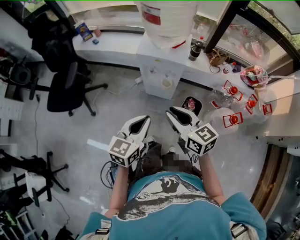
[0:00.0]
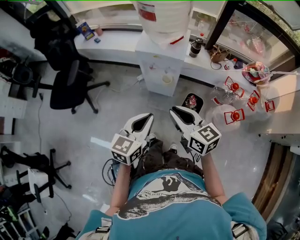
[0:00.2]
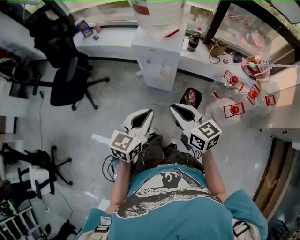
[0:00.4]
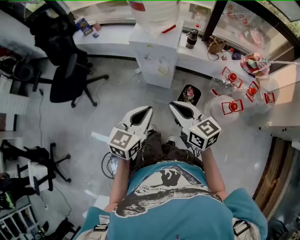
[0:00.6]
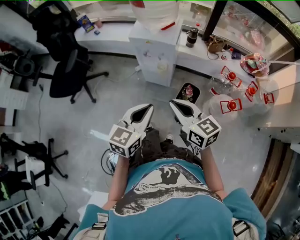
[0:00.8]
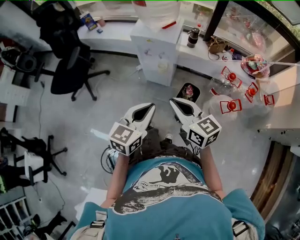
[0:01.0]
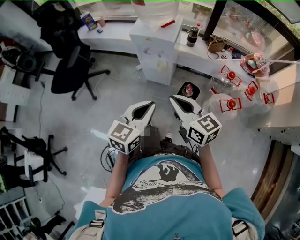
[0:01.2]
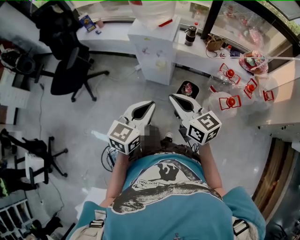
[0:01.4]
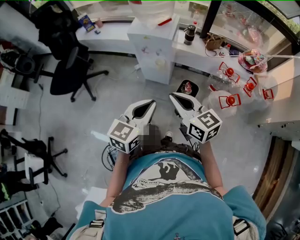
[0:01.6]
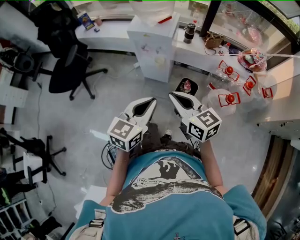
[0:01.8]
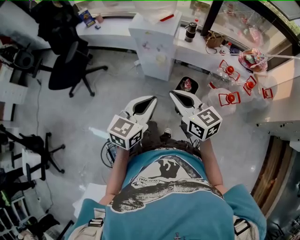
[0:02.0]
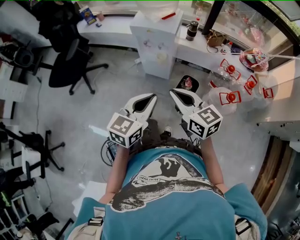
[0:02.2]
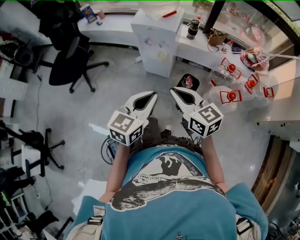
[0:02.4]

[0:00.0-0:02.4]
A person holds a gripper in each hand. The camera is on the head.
0:00.0 to 0:01.2: The two grippers go some 15 cm backward and to the right.
0:01.2 to 0:02.4: The grippers move only a little.

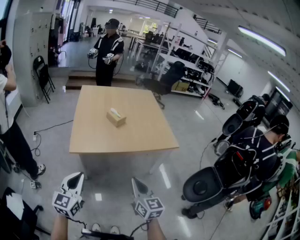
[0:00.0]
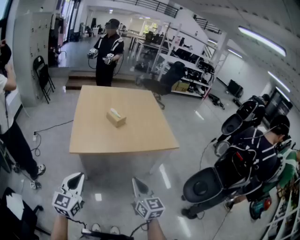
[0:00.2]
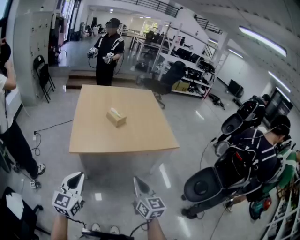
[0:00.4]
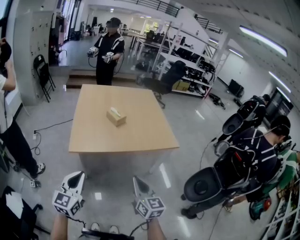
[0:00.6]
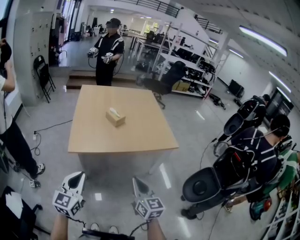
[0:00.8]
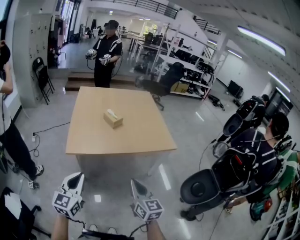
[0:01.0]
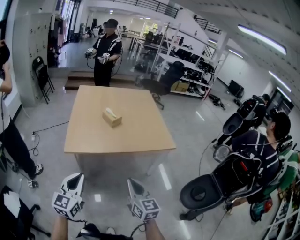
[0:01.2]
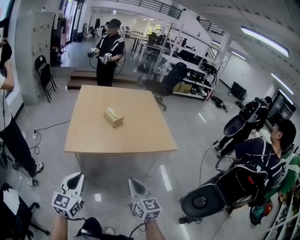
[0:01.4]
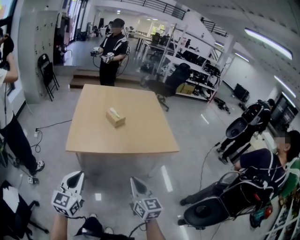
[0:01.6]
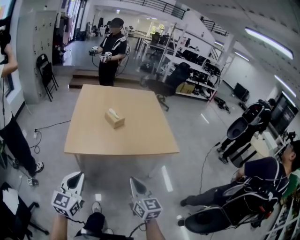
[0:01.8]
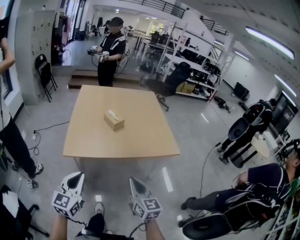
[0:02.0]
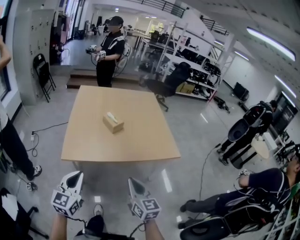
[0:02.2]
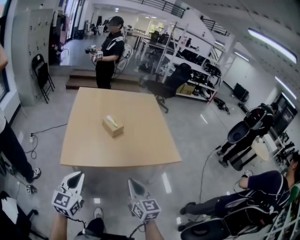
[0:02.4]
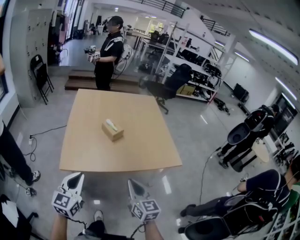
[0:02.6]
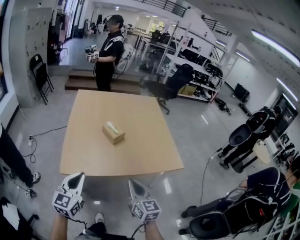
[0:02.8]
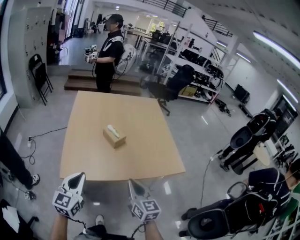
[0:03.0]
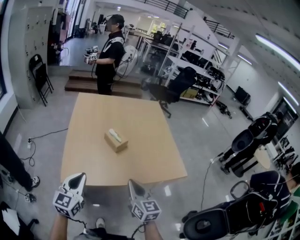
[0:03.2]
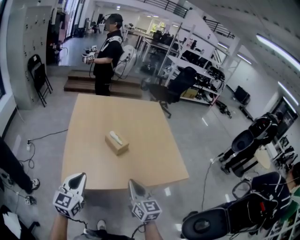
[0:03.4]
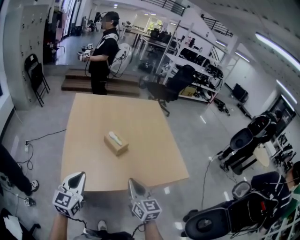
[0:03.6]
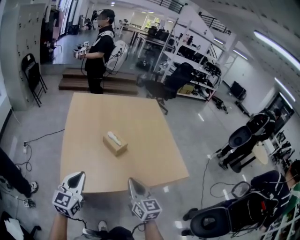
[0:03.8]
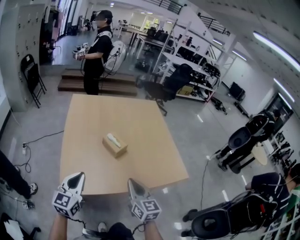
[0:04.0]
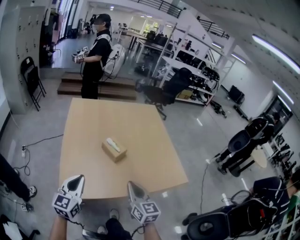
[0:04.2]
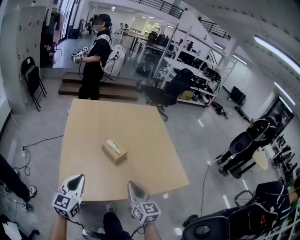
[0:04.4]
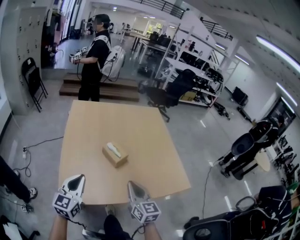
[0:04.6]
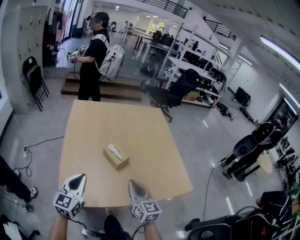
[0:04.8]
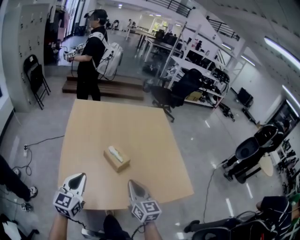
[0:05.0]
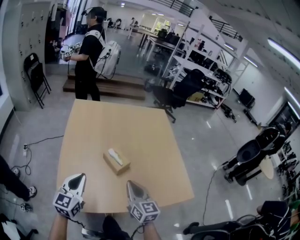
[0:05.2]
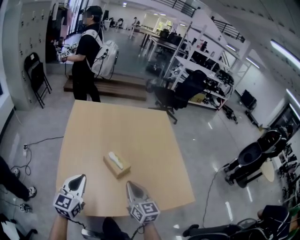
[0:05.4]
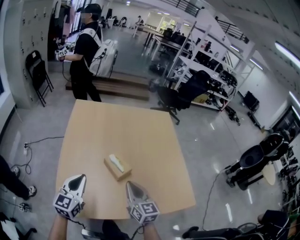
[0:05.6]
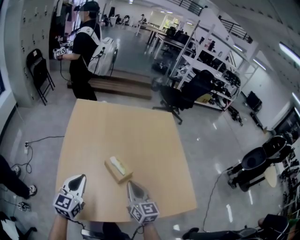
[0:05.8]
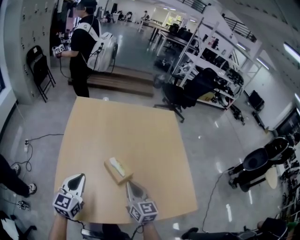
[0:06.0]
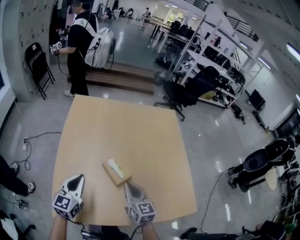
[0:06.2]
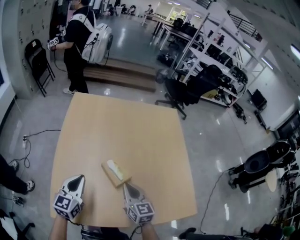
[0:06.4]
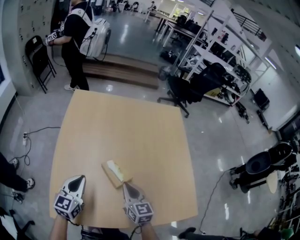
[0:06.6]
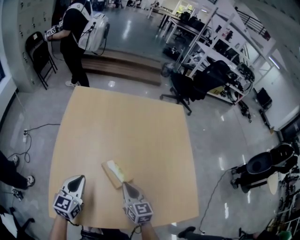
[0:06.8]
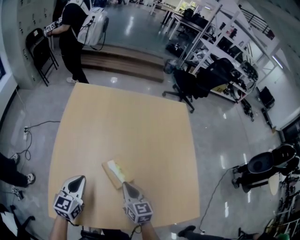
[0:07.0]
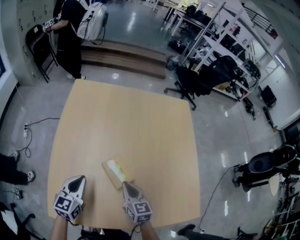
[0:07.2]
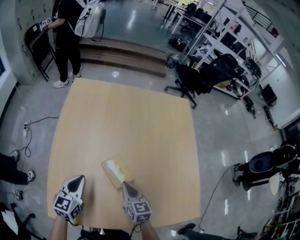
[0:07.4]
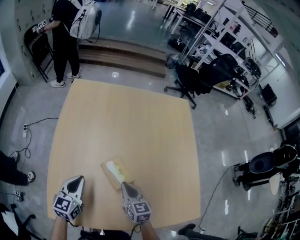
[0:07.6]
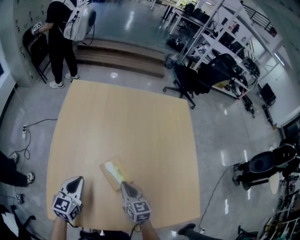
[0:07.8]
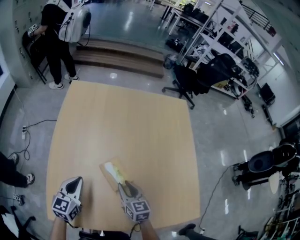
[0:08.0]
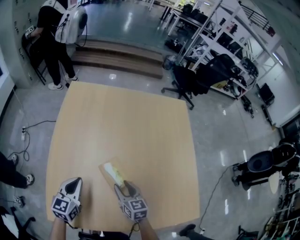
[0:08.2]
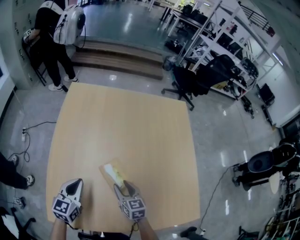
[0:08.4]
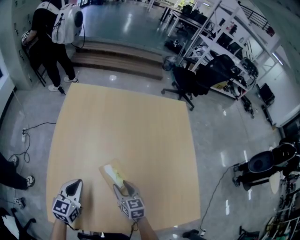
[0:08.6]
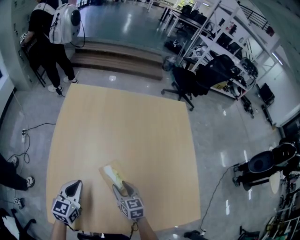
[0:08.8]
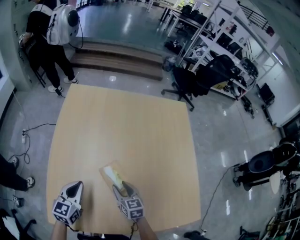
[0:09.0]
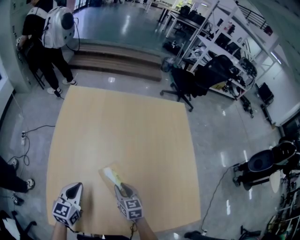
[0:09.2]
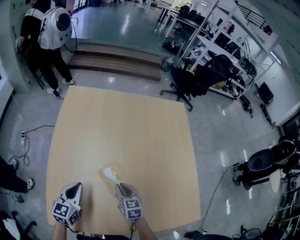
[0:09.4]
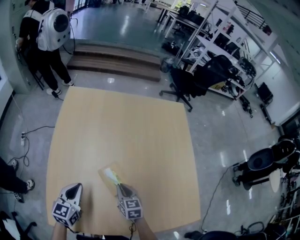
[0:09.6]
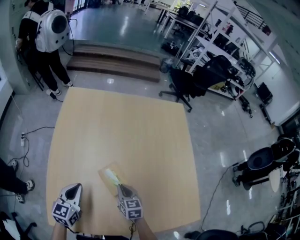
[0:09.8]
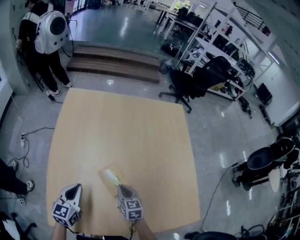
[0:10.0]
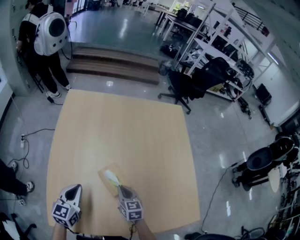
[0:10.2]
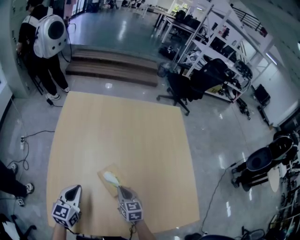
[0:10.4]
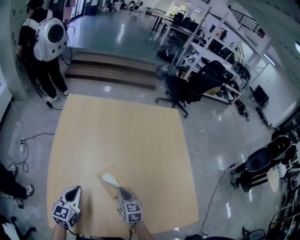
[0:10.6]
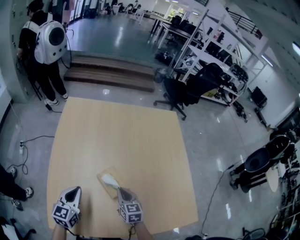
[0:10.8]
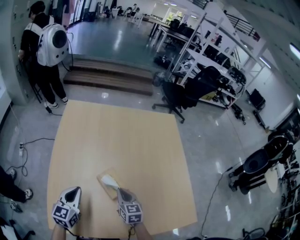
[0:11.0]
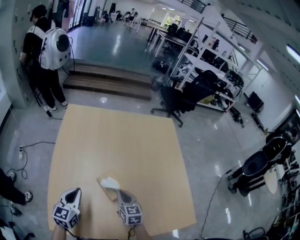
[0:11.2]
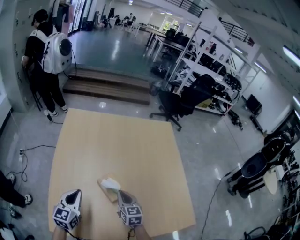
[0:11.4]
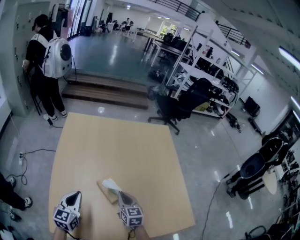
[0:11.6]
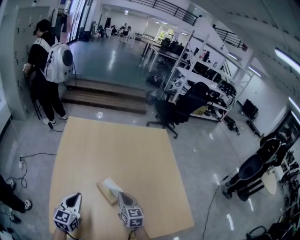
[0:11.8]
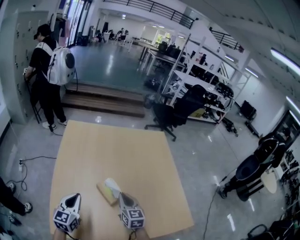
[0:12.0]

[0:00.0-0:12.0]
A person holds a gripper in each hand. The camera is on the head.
0:00.0 to 0:01.6: The grippers stay close to where they were, moving slightly.
0:01.6 to 0:03.0: Both grippers travel together forward, approximately 20 cm.
0:03.0 to 0:04.4: The grippers both shift forward by some 10 cm.
0:04.4 to 0:06.0: Both grippers travel together forward, about 15 cm.
0:06.0 to 0:07.6: The two grippers go approximately 10 cm downward and forward.
0:07.6 to 0:09.0: The right gripper moves about 5 cm, and opens up.
0:09.0 to 0:10.4: The right gripper closes its fingers.
0:10.4 to 0:12.0: The left gripper travels upward by some 5 cm, while the right gripper goes roughly 10 cm upward.

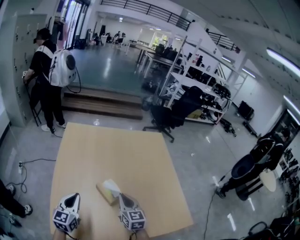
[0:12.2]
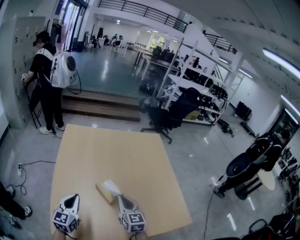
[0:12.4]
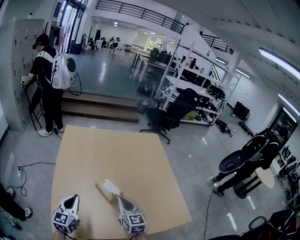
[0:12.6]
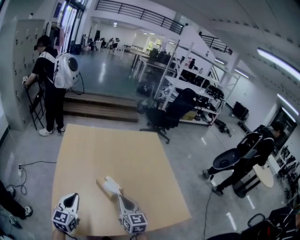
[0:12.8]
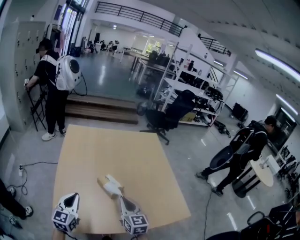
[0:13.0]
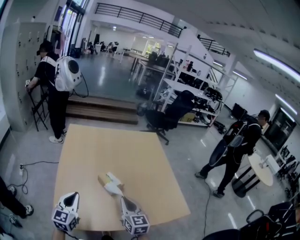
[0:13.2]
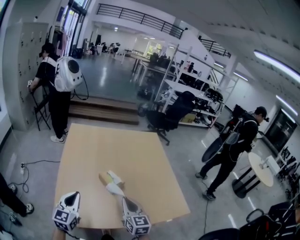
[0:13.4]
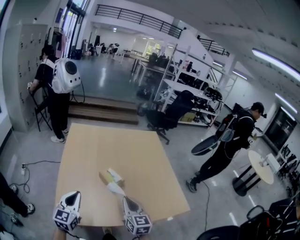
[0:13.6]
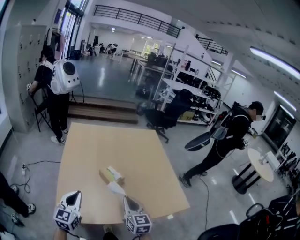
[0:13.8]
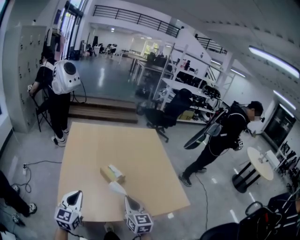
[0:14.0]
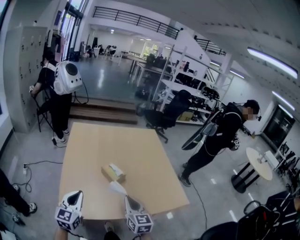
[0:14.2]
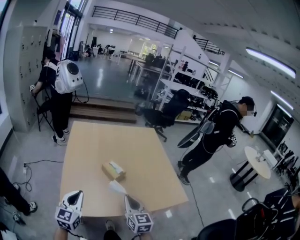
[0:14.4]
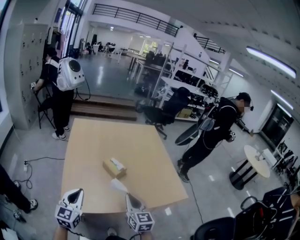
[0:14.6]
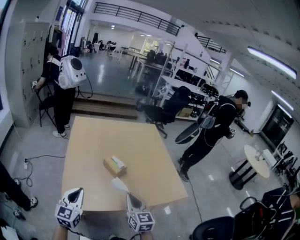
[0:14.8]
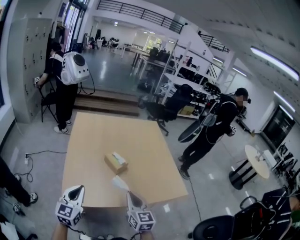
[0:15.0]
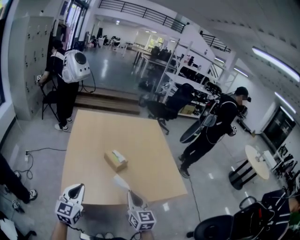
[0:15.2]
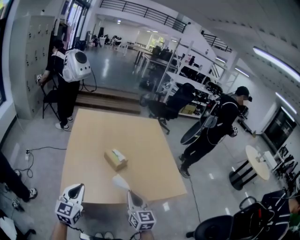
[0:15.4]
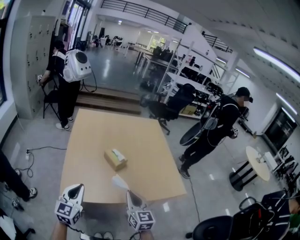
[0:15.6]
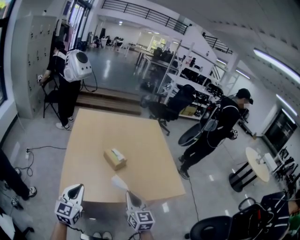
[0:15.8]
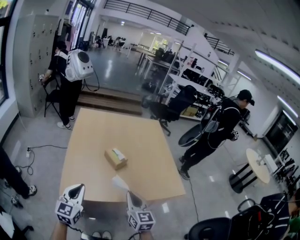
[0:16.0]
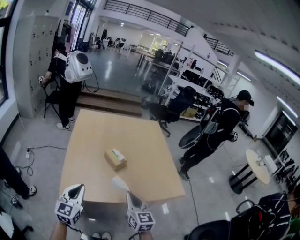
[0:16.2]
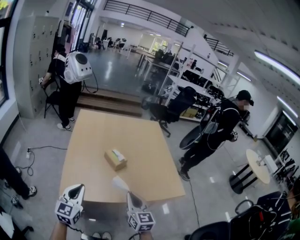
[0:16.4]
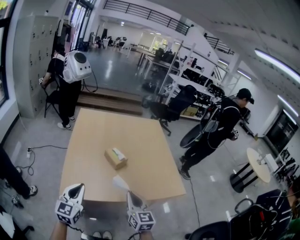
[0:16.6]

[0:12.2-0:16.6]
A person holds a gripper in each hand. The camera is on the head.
0:12.2 to 0:13.6: The grippers both shift backward by approximately 15 cm.
0:13.6 to 0:15.2: Both grippers move backward, about 10 cm.
0:15.2 to 0:16.6: The grippers make only small movements.

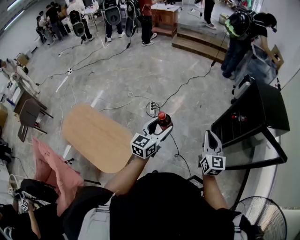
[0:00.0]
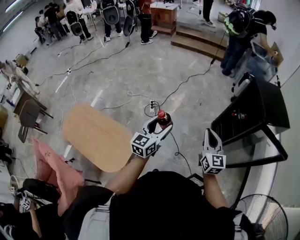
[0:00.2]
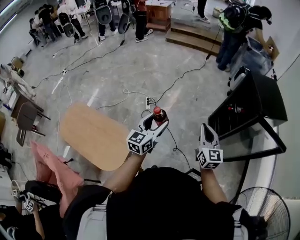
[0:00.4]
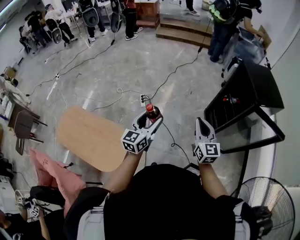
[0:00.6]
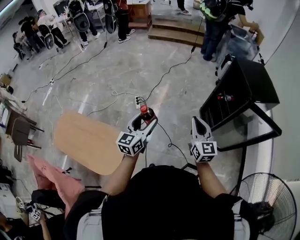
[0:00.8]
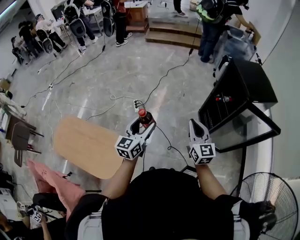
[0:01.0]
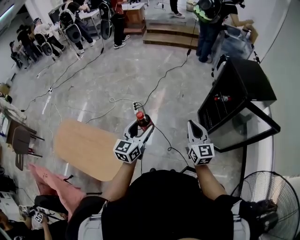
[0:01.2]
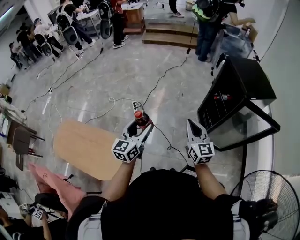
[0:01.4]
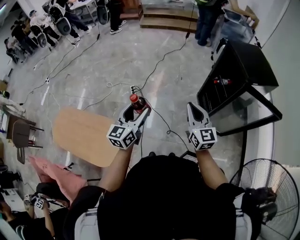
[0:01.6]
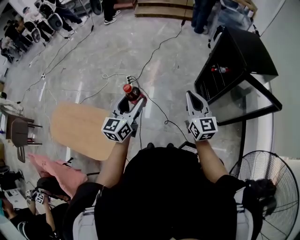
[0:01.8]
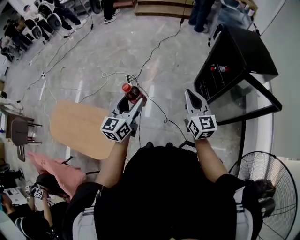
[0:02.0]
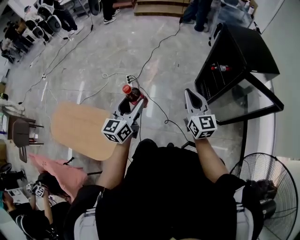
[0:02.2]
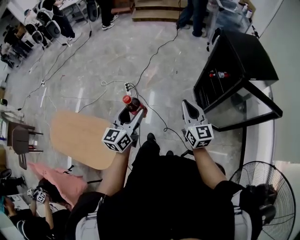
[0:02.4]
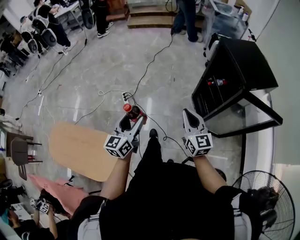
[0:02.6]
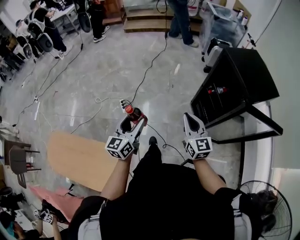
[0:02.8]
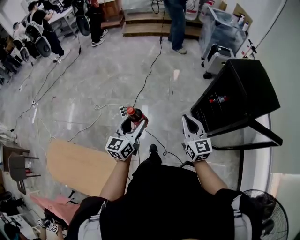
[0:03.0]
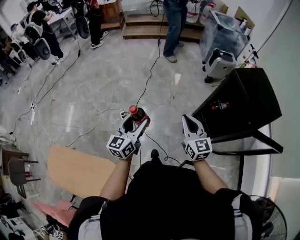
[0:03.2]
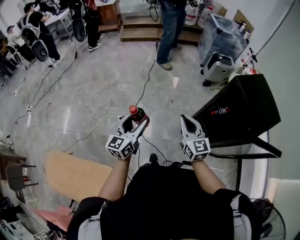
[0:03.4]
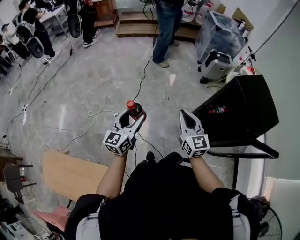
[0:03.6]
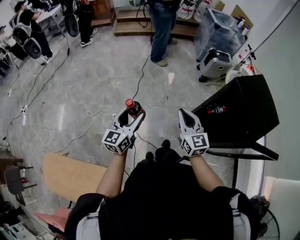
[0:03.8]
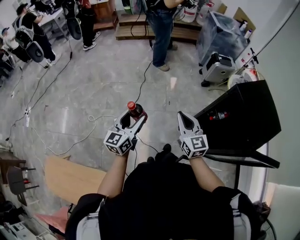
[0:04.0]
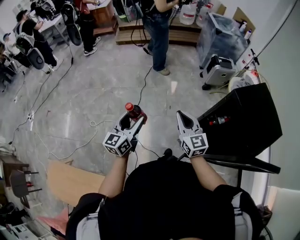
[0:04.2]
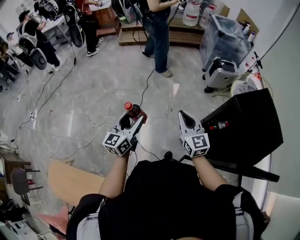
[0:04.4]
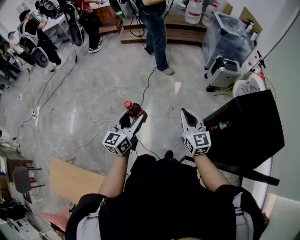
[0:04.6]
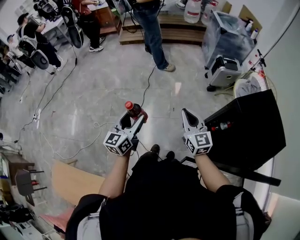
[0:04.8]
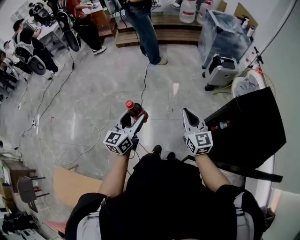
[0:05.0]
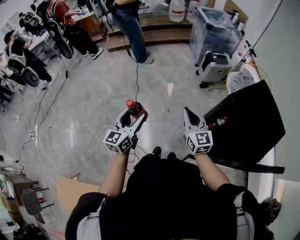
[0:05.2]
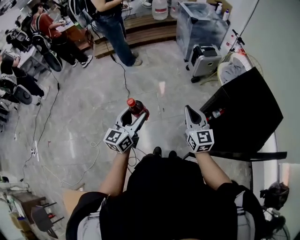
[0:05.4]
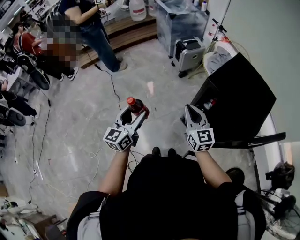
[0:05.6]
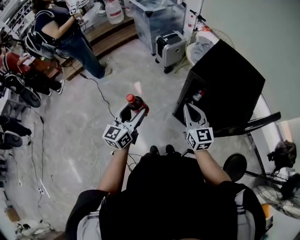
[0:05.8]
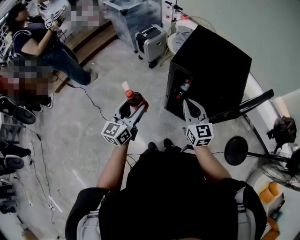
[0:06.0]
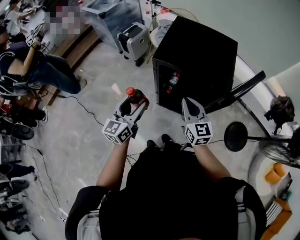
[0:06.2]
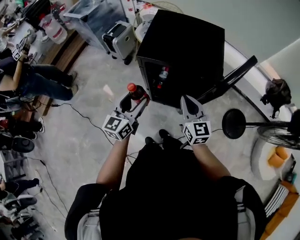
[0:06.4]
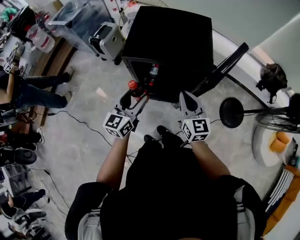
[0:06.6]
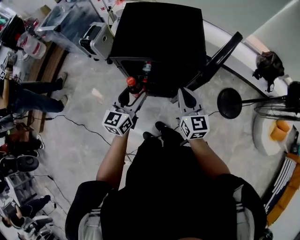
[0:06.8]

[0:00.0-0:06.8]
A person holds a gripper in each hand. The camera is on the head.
0:00.0 to 0:01.4: The grippers make only small movements.
0:01.4 to 0:02.8: The two grippers go approximately 15 cm forward.
0:02.8 to 0:04.0: The grippers both shift forward by some 25 cm.
0:04.0 to 0:05.4: Both grippers move forward and to the right, some 20 cm.
0:05.4 to 0:06.8: The left gripper shifts by approximately 40 cm, and rotates about 50 degrees. Meanwhile the right gripper ends up roughly 35 cm from where it was, and changes its angle by some 50 degrees.
